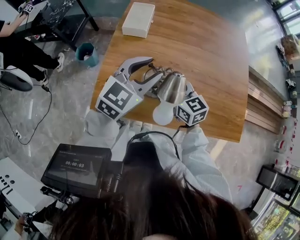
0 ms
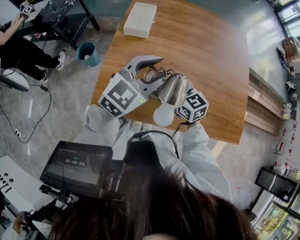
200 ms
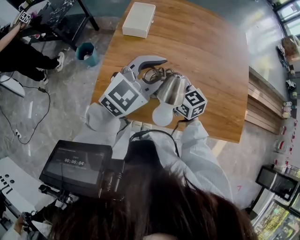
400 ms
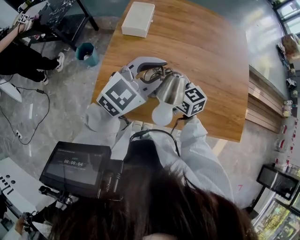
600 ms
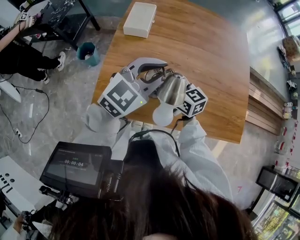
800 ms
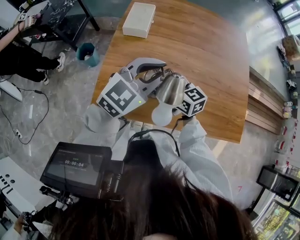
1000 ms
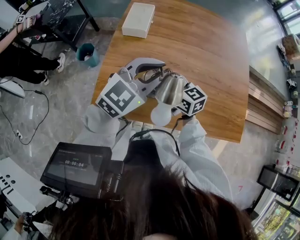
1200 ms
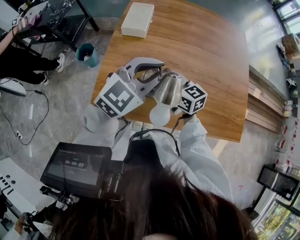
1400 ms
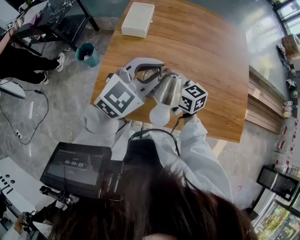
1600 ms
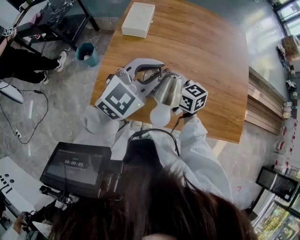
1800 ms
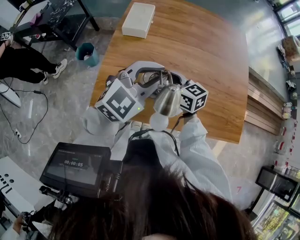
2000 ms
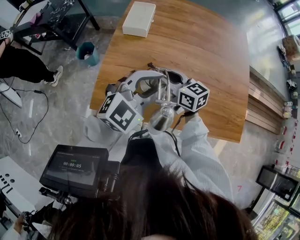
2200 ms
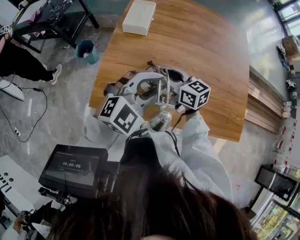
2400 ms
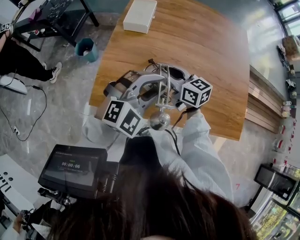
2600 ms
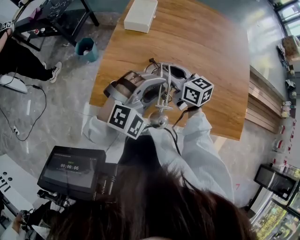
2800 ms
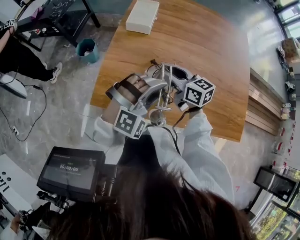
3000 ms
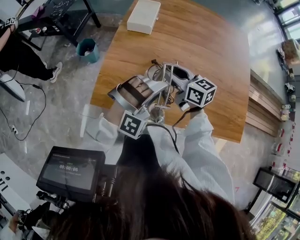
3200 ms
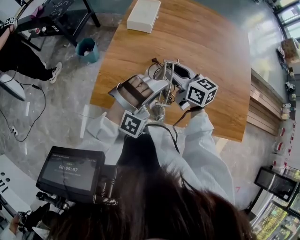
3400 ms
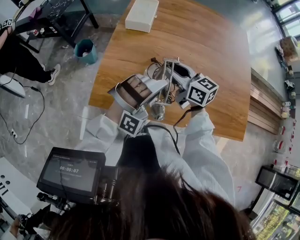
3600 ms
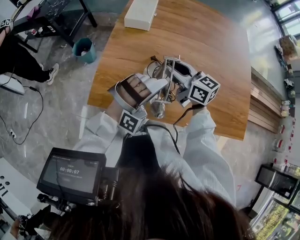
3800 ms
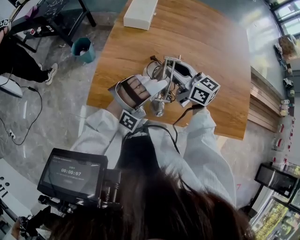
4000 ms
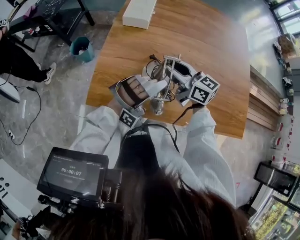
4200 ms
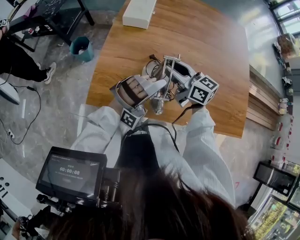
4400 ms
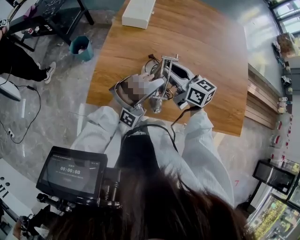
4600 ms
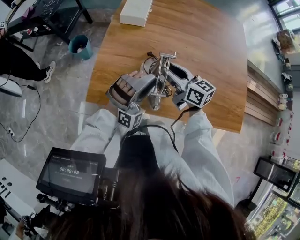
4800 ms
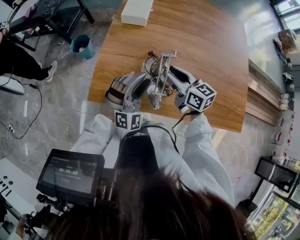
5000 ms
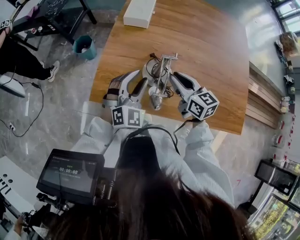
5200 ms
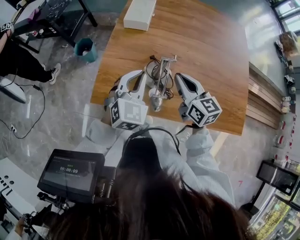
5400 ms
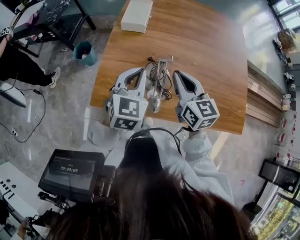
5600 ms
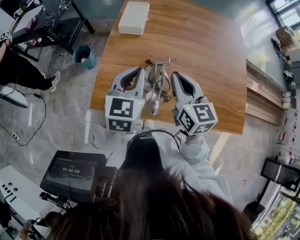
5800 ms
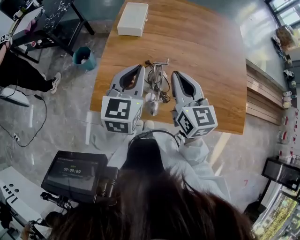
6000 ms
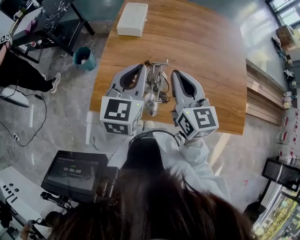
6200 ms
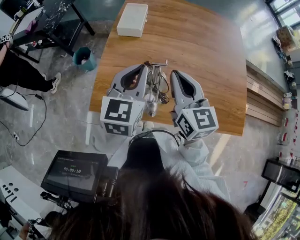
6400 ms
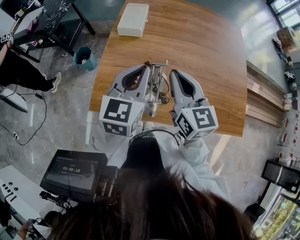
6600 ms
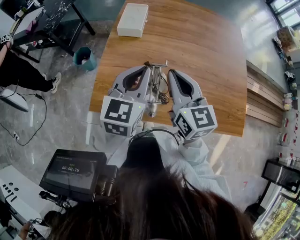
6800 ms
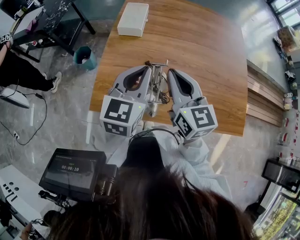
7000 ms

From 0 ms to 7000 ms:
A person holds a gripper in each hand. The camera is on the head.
From 0 ms to 1400 ms: The left gripper closes up.
From 1400 ms to 2800 ms: The left gripper is displaced downward and backward by some 10 cm, and swivels some 40 degrees.
From 2800 ms to 4200 ms: The left gripper goes approximately 5 cm downward, and twists roughly 40 degrees clockwise, seen from behind.
From 4200 ms to 5600 ms: The right gripper goes roughly 10 cm upward and backward, rotates approximately 30 degrees, and closes. Meanwhile the left gripper heads to the left, upward and forward, covering approximately 10 cm, rolls counterclockwise, seen from behind, by roughly 80 degrees, and closes its fingers.
From 5600 ms to 7000 ms: The two grippers go about 5 cm upward.

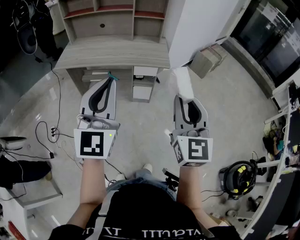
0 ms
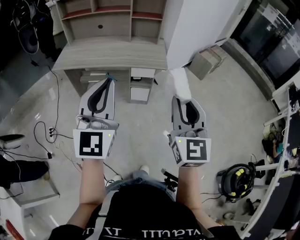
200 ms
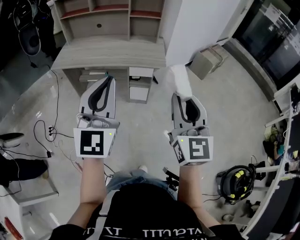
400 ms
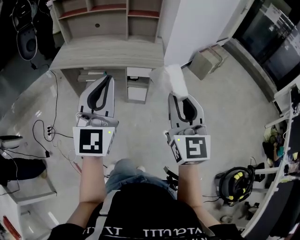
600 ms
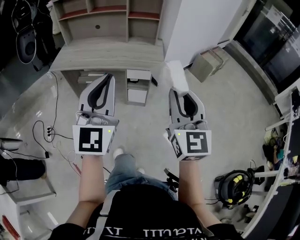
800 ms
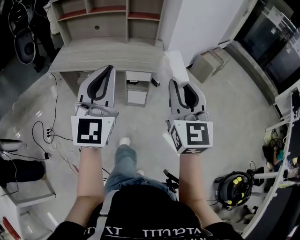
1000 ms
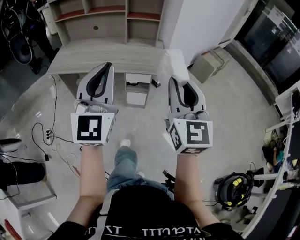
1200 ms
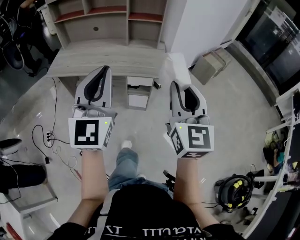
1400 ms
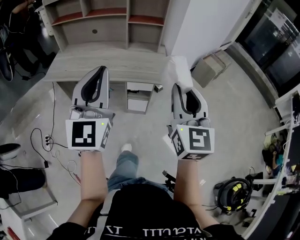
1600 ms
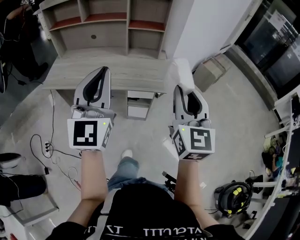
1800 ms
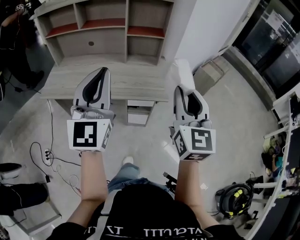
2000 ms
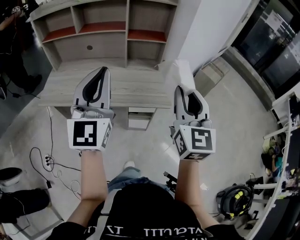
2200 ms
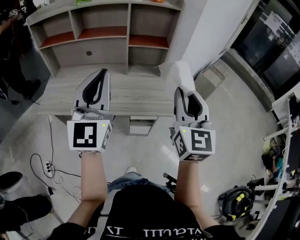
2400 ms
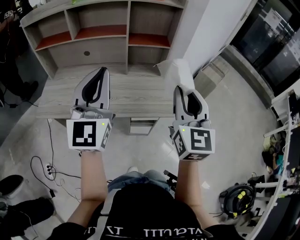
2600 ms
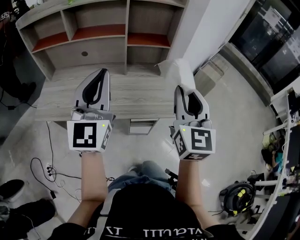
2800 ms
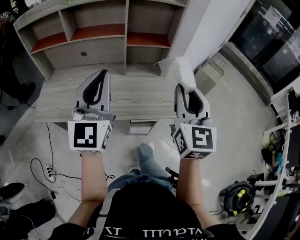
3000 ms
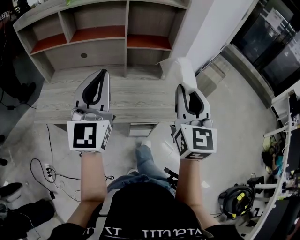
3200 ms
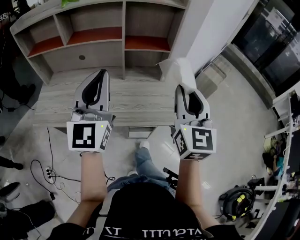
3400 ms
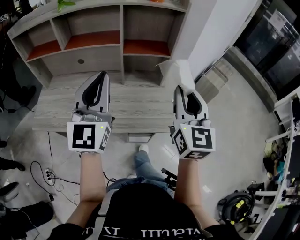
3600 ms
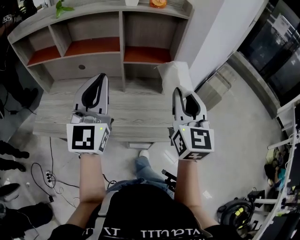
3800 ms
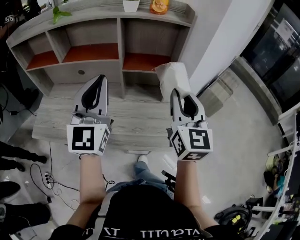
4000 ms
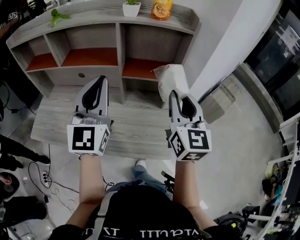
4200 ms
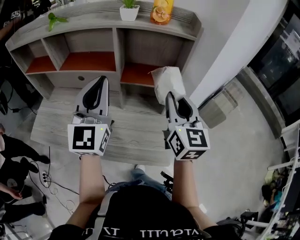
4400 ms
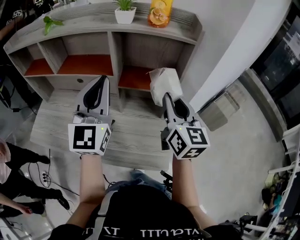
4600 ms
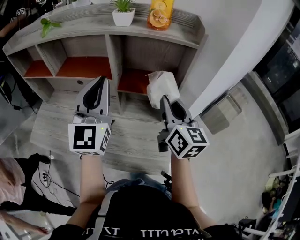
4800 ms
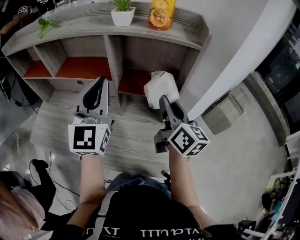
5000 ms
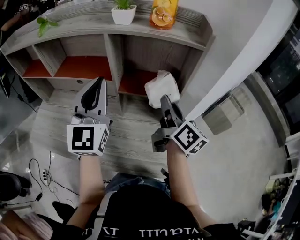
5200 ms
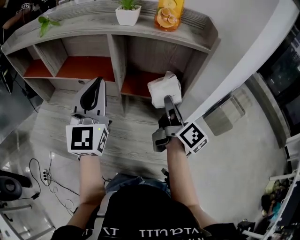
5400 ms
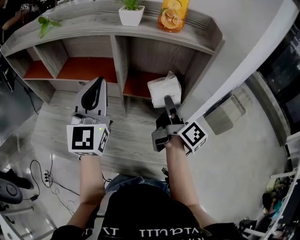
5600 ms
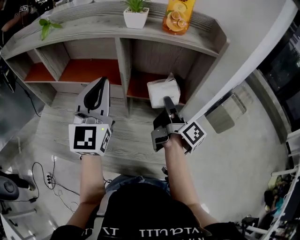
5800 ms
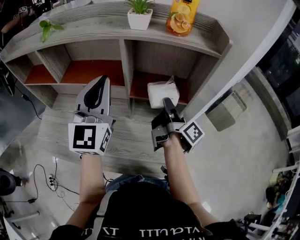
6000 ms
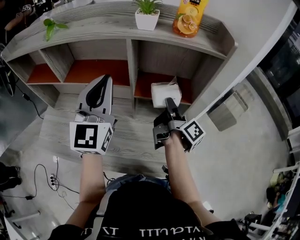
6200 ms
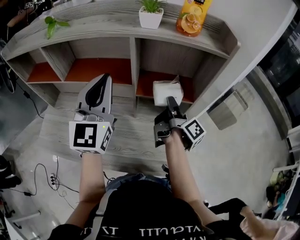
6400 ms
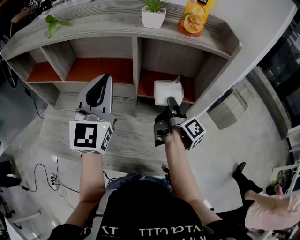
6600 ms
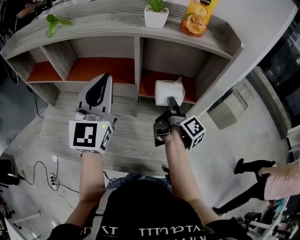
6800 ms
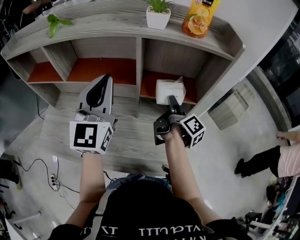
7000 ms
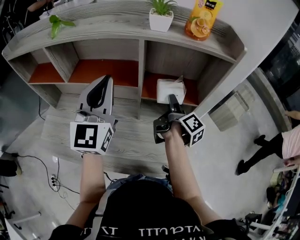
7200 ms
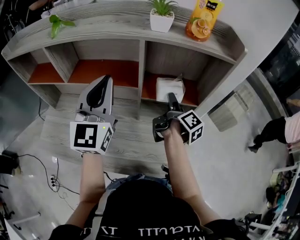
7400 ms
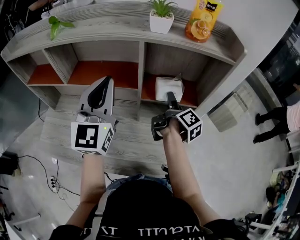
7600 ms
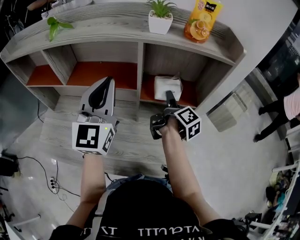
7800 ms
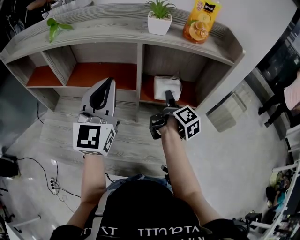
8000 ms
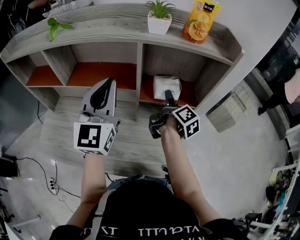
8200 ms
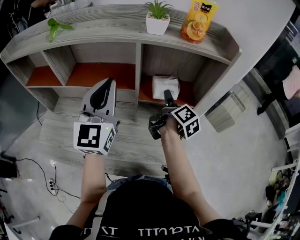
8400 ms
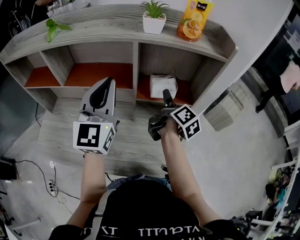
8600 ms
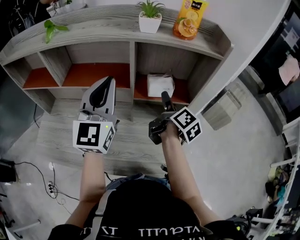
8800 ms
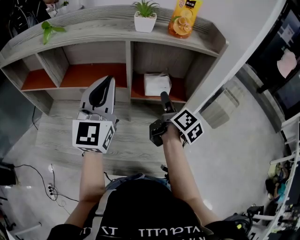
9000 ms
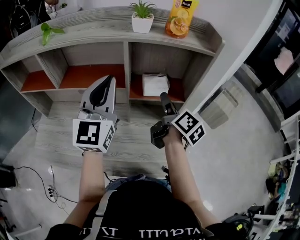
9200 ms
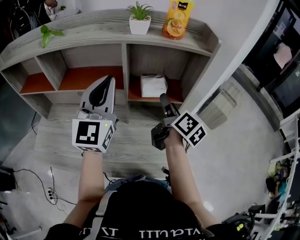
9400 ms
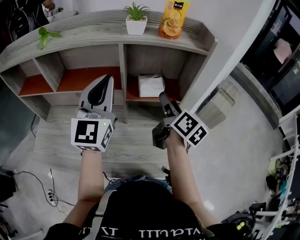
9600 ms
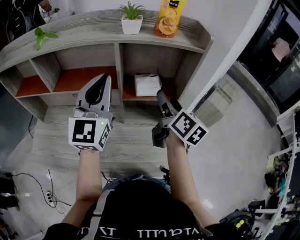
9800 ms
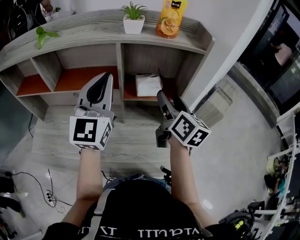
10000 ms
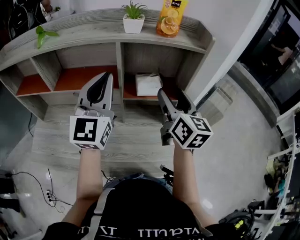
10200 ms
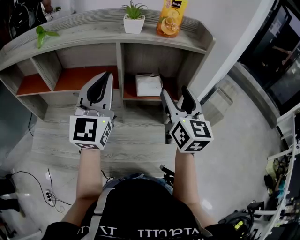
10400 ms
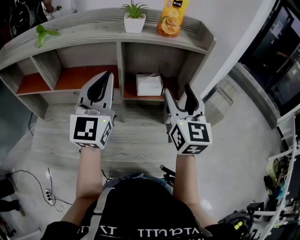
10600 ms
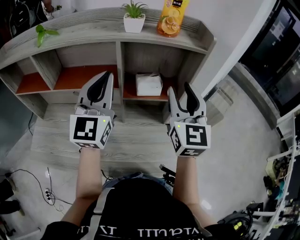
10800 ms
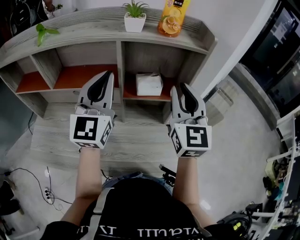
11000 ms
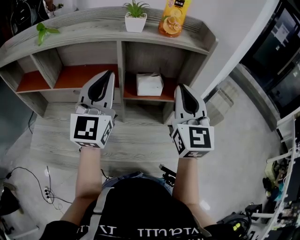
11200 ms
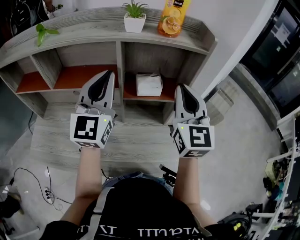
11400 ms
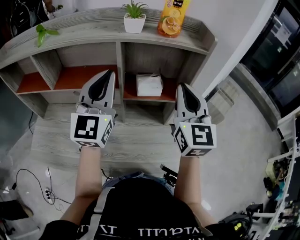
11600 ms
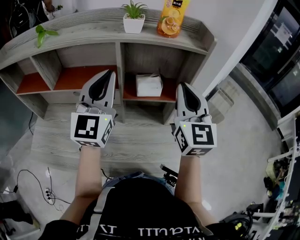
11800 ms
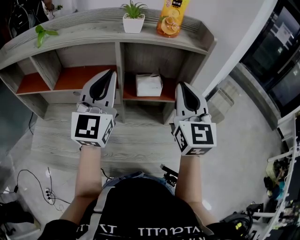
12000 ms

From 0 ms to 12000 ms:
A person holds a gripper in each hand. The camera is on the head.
From 0 ms to 1600 ms: Both grippers travel together forward, approximately 20 cm.
From 1600 ms to 3000 ms: Both grippers travel together forward, some 25 cm.
From 3000 ms to 4400 ms: Both grippers move forward, roughly 25 cm.
From 4400 ms to 6000 ms: The right gripper shifts about 15 cm forward and downward, and rotates around the line of its fingers by about 80 degrees, clockwise from behind; the left gripper shifts about 10 cm forward.
From 6000 ms to 7600 ms: The right gripper shifts by some 5 cm, and opens up.
From 7600 ms to 9000 ms: The right gripper moves about 5 cm.
From 9000 ms to 10400 ms: The right gripper shifts some 10 cm upward, and rotates around the line of its fingers by roughly 60 degrees, counterclockwise from behind.
From 10400 ms to 12000 ms: The right gripper closes up.

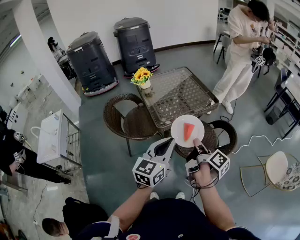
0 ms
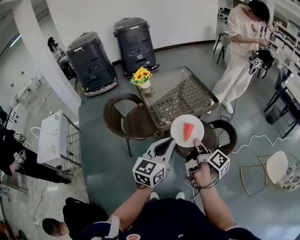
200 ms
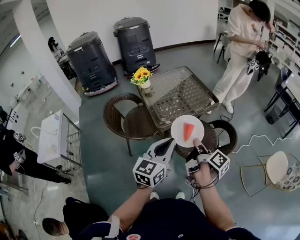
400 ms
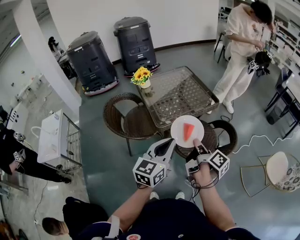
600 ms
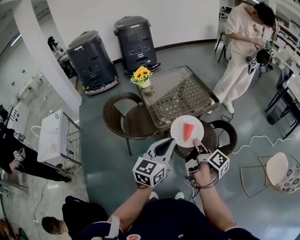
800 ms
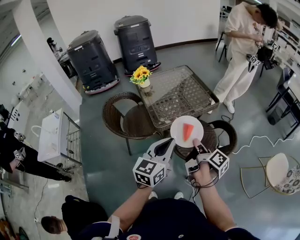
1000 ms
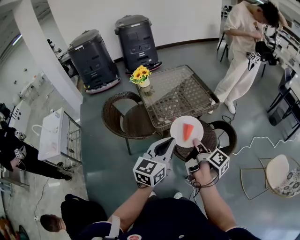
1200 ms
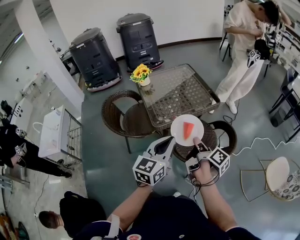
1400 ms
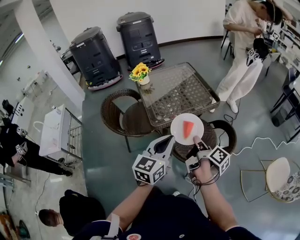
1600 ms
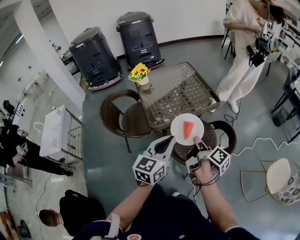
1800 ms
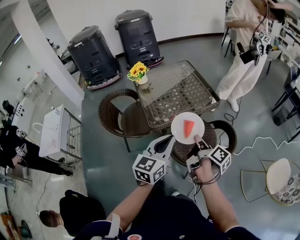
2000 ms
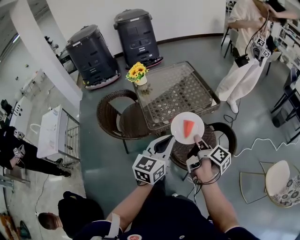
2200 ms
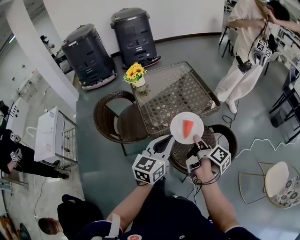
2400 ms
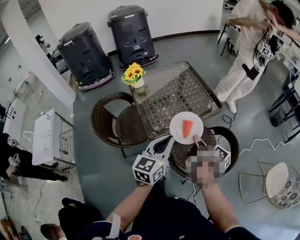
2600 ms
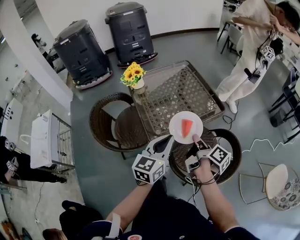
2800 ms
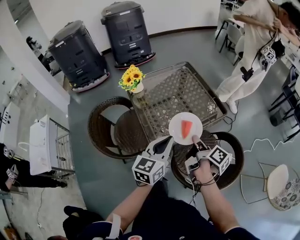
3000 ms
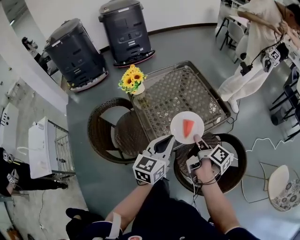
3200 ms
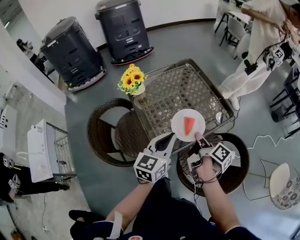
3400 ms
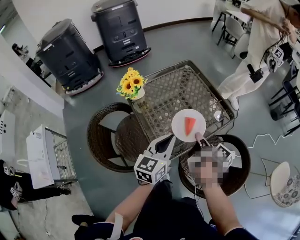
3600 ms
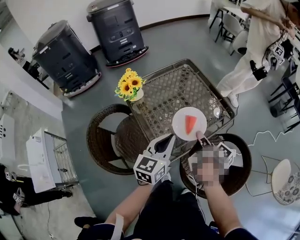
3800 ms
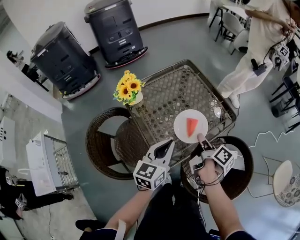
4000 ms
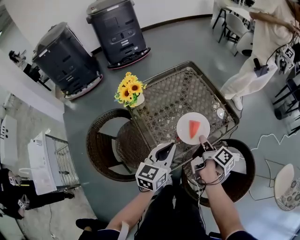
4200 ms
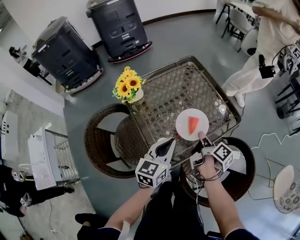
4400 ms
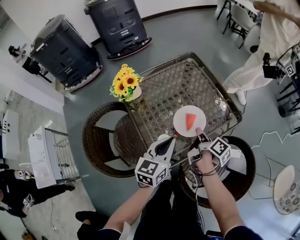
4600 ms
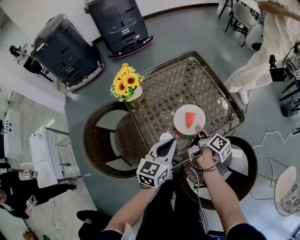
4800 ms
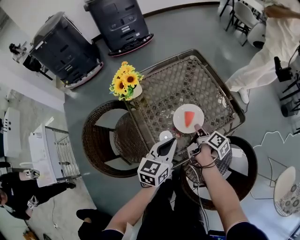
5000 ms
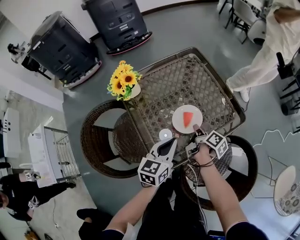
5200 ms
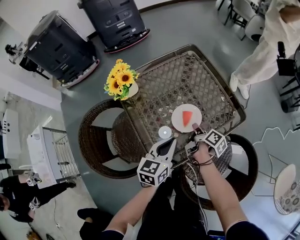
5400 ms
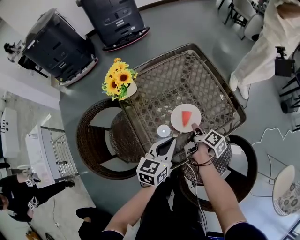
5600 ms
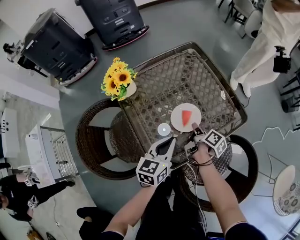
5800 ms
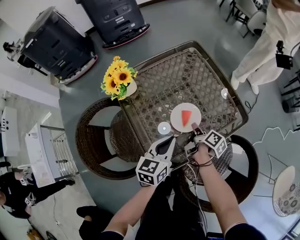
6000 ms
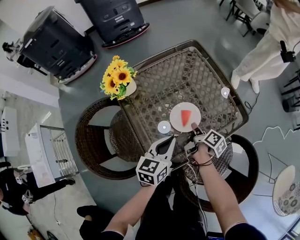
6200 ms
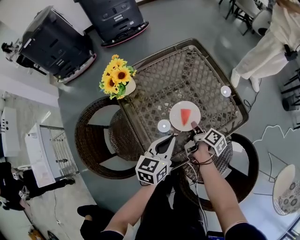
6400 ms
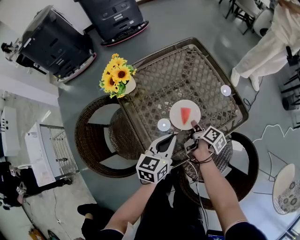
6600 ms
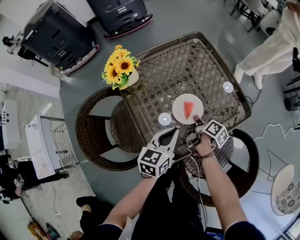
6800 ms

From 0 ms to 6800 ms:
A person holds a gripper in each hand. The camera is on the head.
From 0 ms to 1400 ms: The left gripper moves about 5 cm.
From 1400 ms to 2800 ms: The left gripper ends up roughly 20 cm from where it was.
From 2800 ms to 4000 ms: The left gripper changes place by some 20 cm.
From 4000 ms to 5400 ms: The left gripper heads downward, covering approximately 10 cm.
